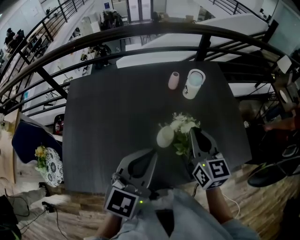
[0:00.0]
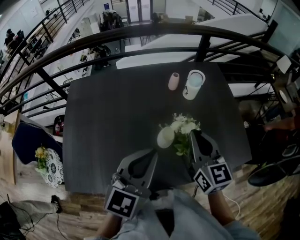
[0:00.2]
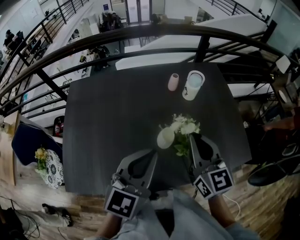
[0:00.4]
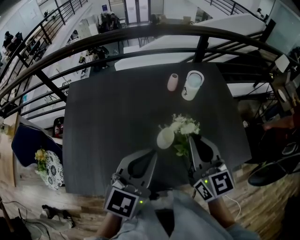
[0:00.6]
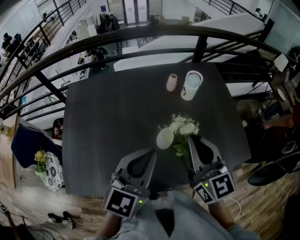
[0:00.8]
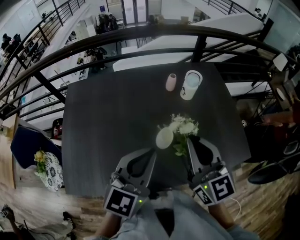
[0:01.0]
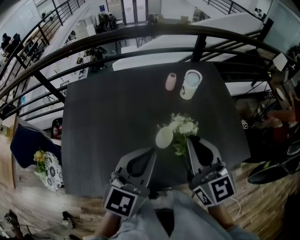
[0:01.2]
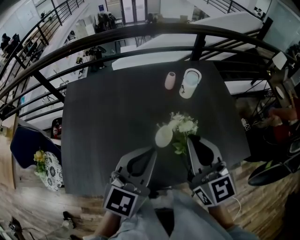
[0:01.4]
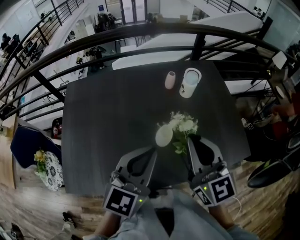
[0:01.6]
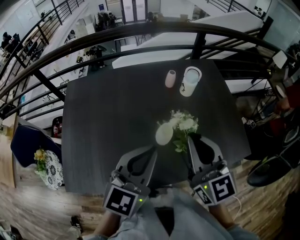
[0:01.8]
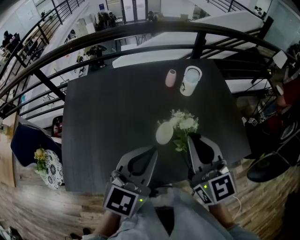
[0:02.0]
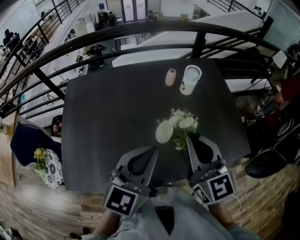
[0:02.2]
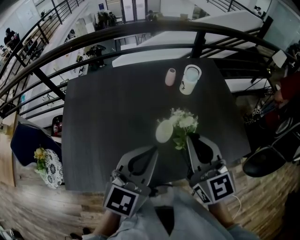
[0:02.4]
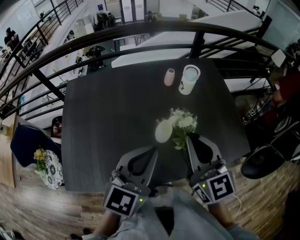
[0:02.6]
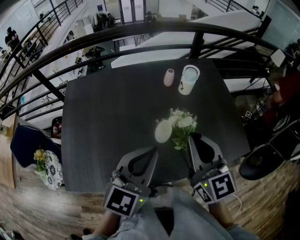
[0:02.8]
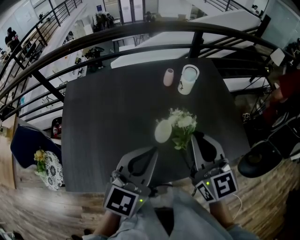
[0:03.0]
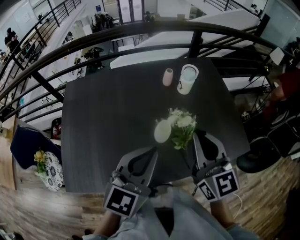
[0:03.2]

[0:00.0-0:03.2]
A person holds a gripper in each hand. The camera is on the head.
0:00.0 to 0:01.6: The right gripper travels upward and backward by about 10 cm.
0:01.6 to 0:03.2: The grippers move only a little.

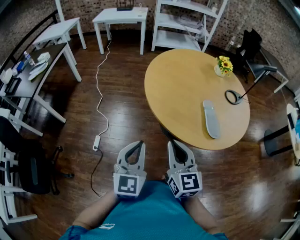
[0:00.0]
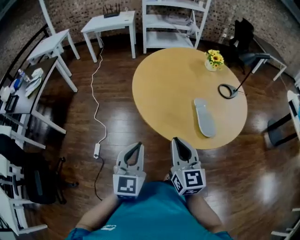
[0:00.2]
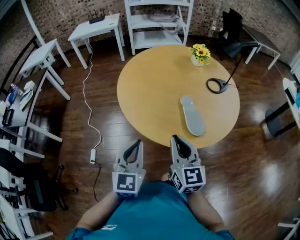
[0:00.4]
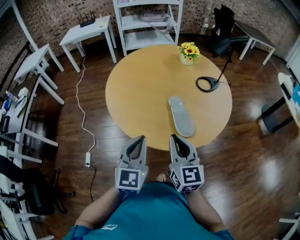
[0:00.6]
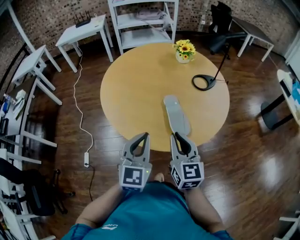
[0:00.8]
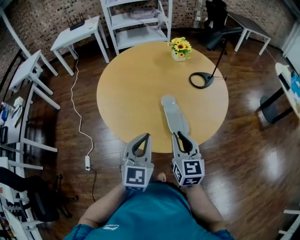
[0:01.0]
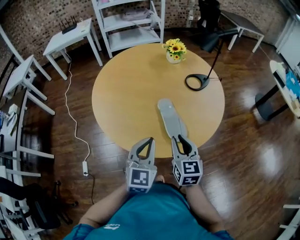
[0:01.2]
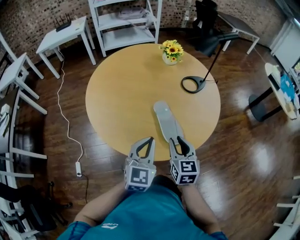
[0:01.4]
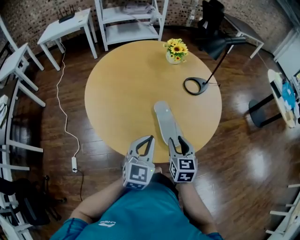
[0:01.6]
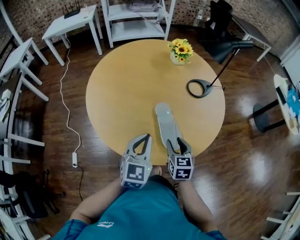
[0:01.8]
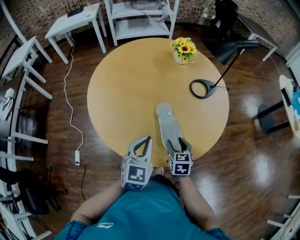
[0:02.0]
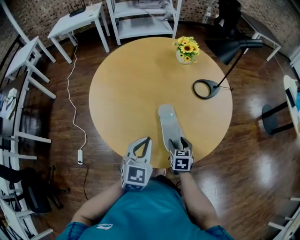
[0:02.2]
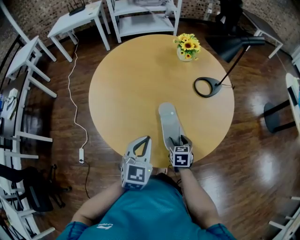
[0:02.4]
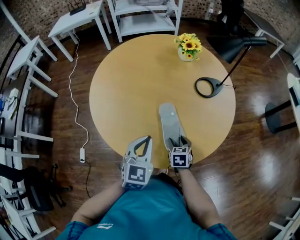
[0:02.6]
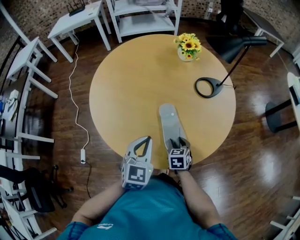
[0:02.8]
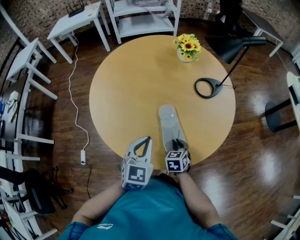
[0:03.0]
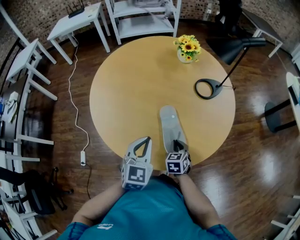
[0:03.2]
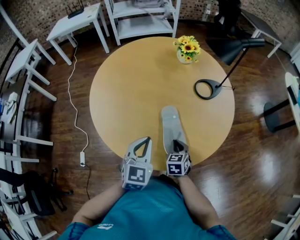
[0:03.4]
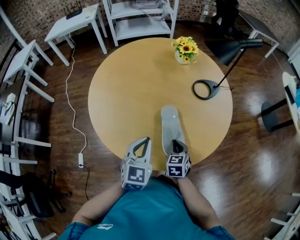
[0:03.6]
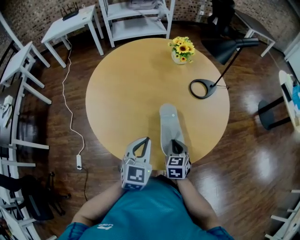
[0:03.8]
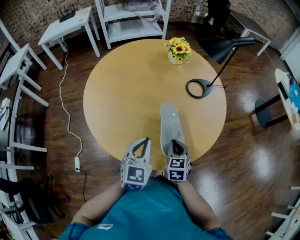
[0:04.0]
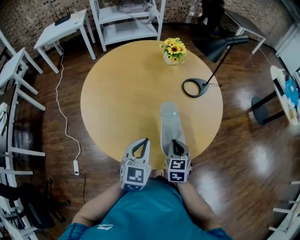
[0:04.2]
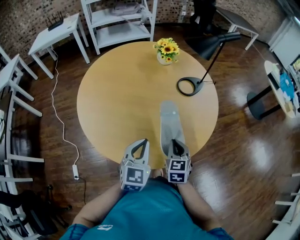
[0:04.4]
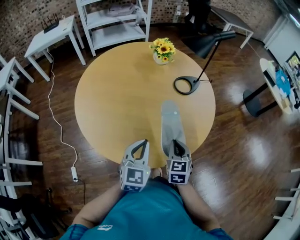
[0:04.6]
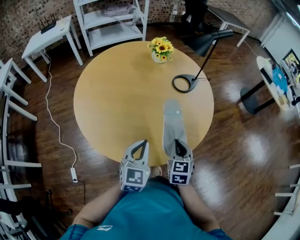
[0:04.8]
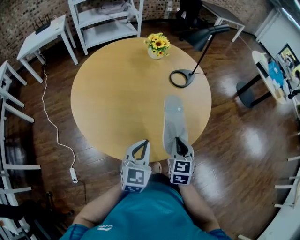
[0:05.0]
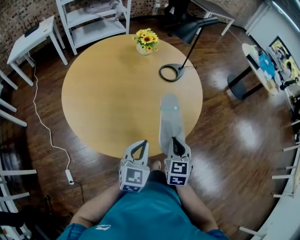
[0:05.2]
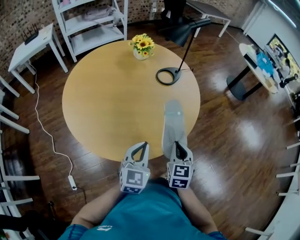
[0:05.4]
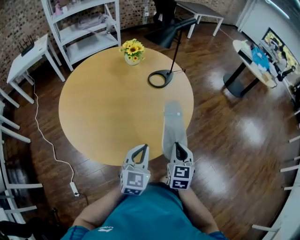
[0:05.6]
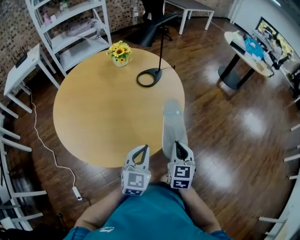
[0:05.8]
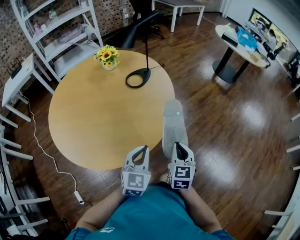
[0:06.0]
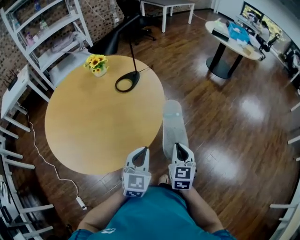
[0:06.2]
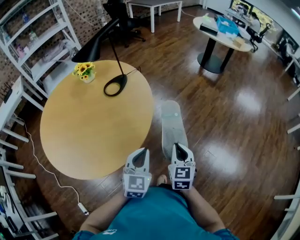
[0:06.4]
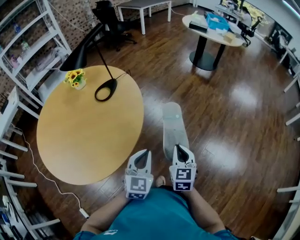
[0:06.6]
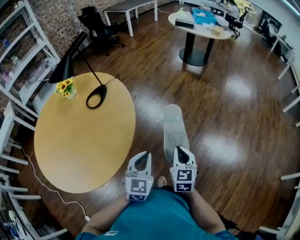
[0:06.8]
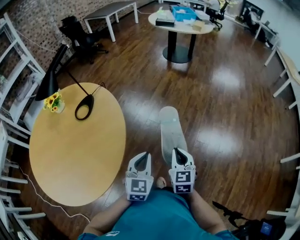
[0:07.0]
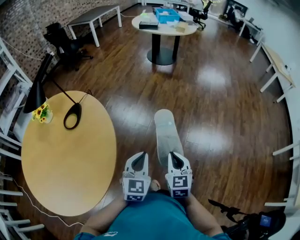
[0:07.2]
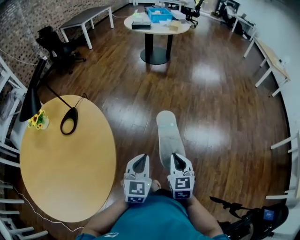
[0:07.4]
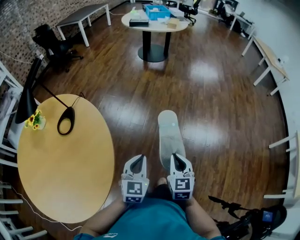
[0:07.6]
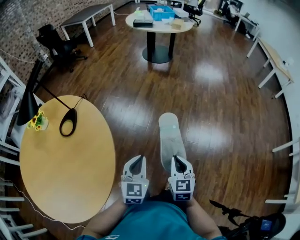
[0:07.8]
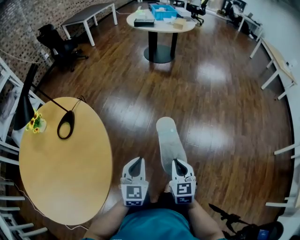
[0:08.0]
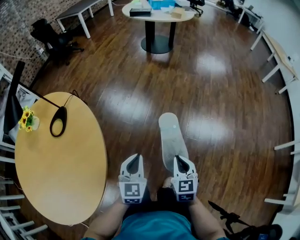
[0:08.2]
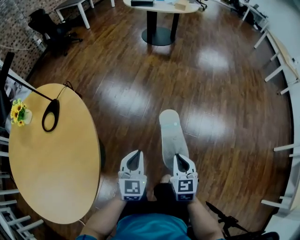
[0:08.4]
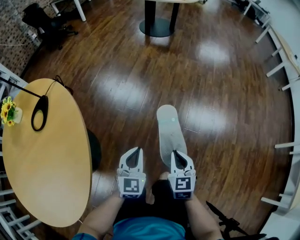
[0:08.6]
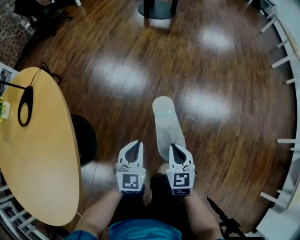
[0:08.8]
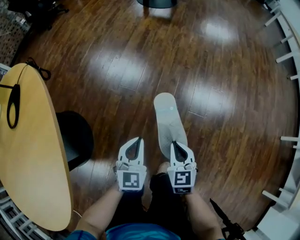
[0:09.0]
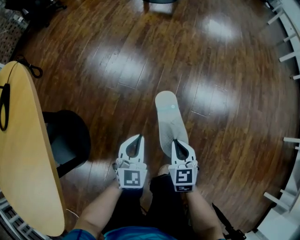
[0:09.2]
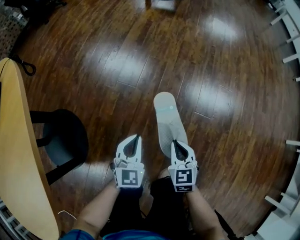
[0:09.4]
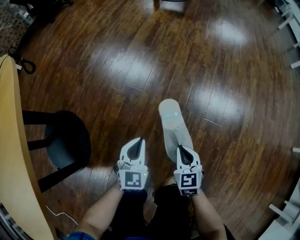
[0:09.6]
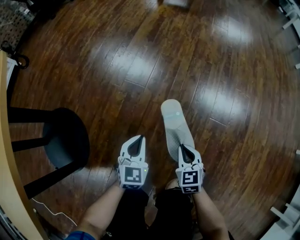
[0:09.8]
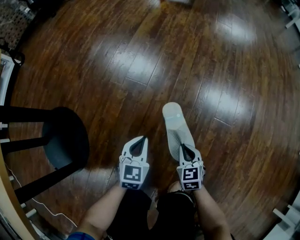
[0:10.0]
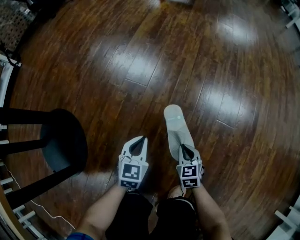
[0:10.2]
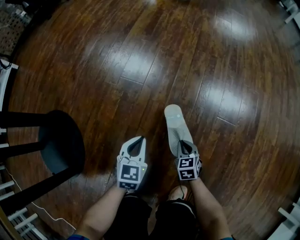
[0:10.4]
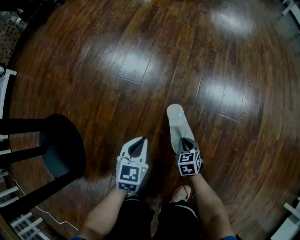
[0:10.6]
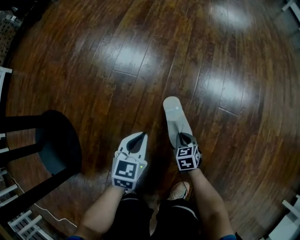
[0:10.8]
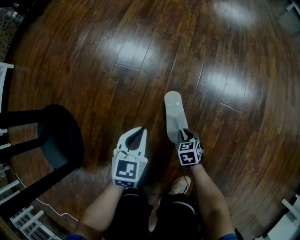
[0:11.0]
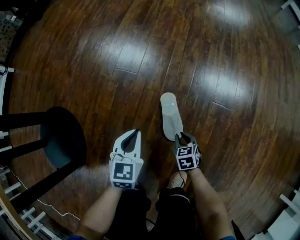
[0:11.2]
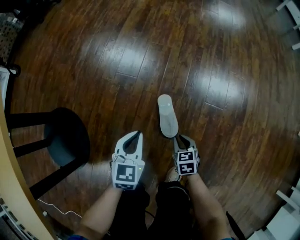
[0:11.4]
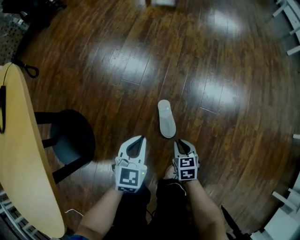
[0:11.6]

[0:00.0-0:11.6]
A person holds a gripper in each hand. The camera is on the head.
0:00.0 to 0:01.4: The pair of grippers is taken to the right and forward, roughly 40 cm. The right gripper changes its angle by approximately 30 degrees, and opens up; the left gripper changes its angle by about 20 degrees.
0:01.4 to 0:02.8: The right gripper goes approximately 20 cm downward and forward, and swivels roughly 30 degrees; the left gripper travels forward by some 10 cm.
0:02.8 to 0:04.4: The right gripper moves upward, roughly 10 cm, and closes up.
0:04.4 to 0:05.8: The left gripper is displaced to the right by approximately 15 cm. Meanwhile the right gripper shifts about 20 cm to the right and backward, and rotates about 20 degrees.
0:05.8 to 0:07.2: The right gripper ends up approximately 35 cm from where it was, and changes its angle by about 30 degrees; the left gripper shifts by approximately 35 cm, and changes its angle by approximately 30 degrees.
0:07.2 to 0:08.8: Both grippers move downward and forward, some 30 cm.
0:08.8 to 0:10.2: Both grippers travel together downward, roughly 50 cm.
0:10.2 to 0:11.6: Both grippers travel together upward, roughly 20 cm.

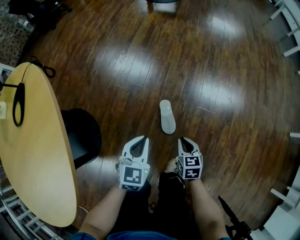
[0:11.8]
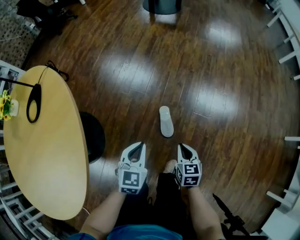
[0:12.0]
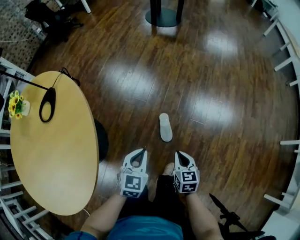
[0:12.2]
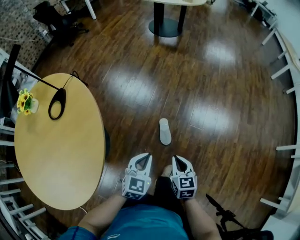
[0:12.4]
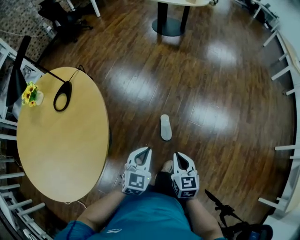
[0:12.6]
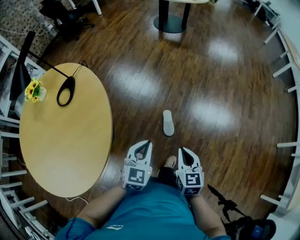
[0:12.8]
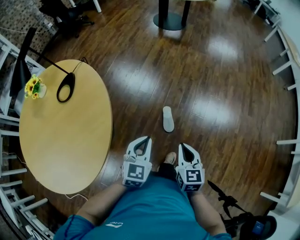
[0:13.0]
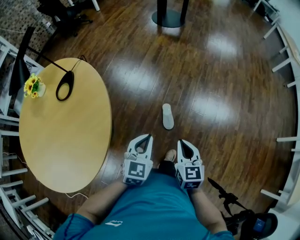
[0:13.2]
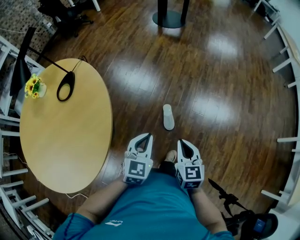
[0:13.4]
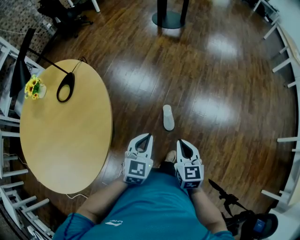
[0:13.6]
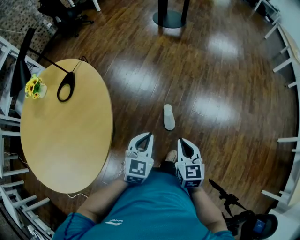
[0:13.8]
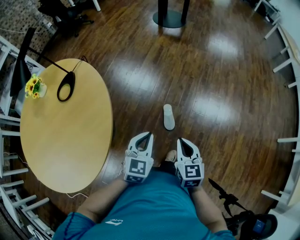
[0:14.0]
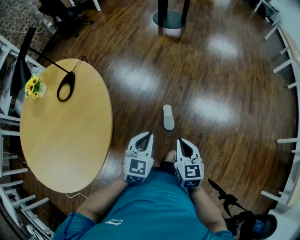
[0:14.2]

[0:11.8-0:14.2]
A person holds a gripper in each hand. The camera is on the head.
0:11.8 to 0:13.0: The right gripper moves upward, roughly 40 cm. The left gripper moves upward and backward, about 35 cm.
0:13.0 to 0:14.2: The grippers make only small movements.

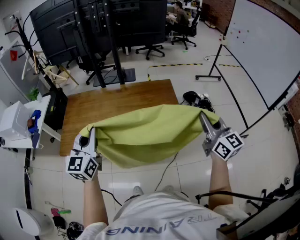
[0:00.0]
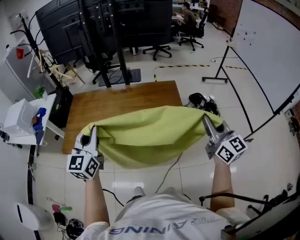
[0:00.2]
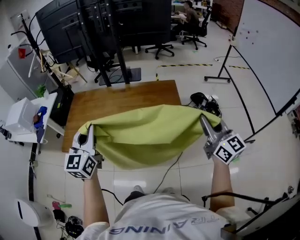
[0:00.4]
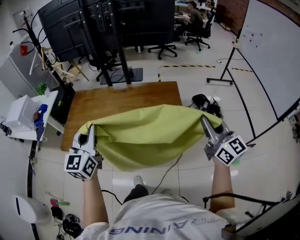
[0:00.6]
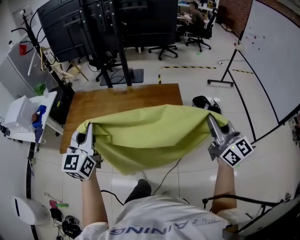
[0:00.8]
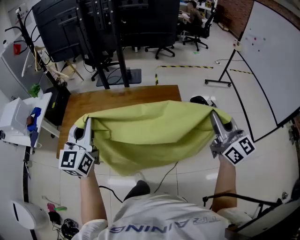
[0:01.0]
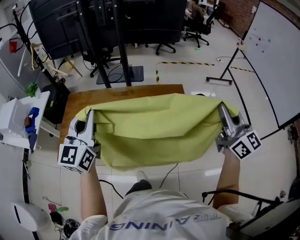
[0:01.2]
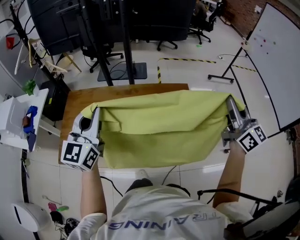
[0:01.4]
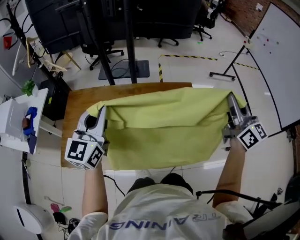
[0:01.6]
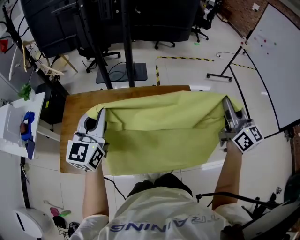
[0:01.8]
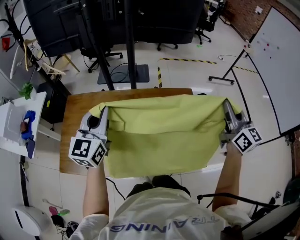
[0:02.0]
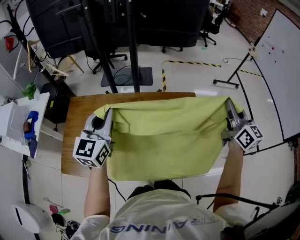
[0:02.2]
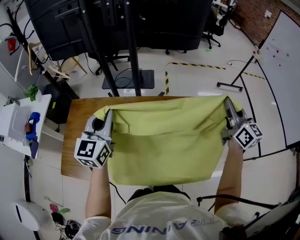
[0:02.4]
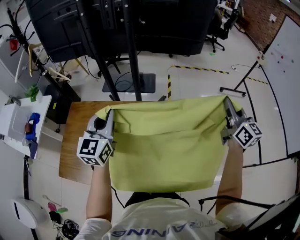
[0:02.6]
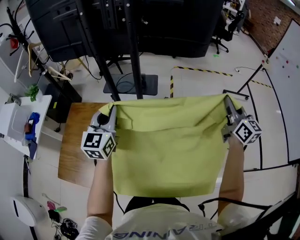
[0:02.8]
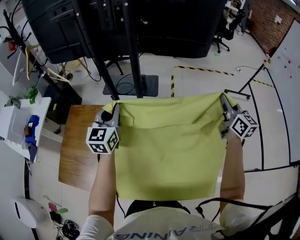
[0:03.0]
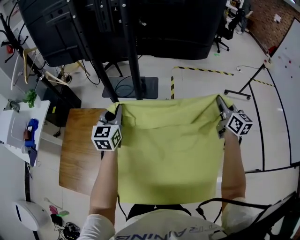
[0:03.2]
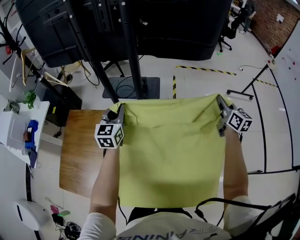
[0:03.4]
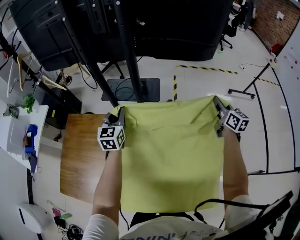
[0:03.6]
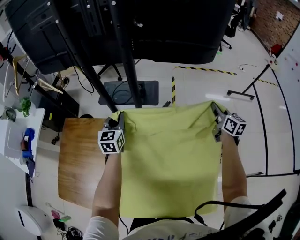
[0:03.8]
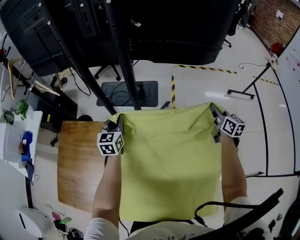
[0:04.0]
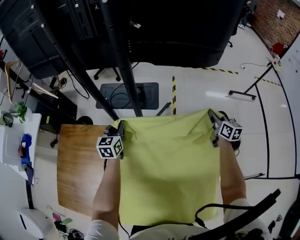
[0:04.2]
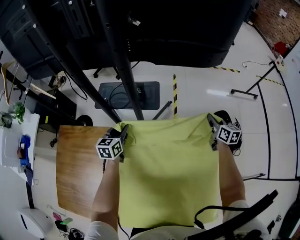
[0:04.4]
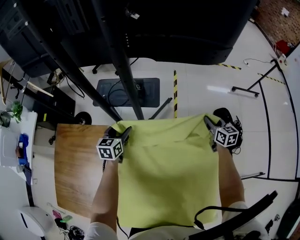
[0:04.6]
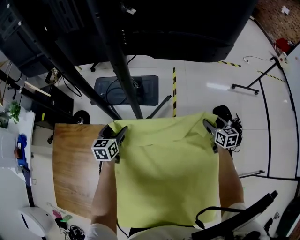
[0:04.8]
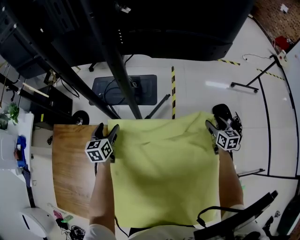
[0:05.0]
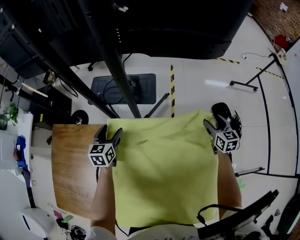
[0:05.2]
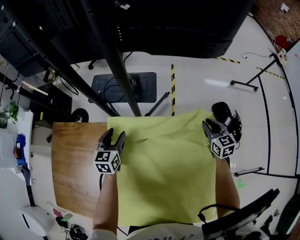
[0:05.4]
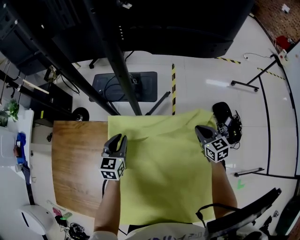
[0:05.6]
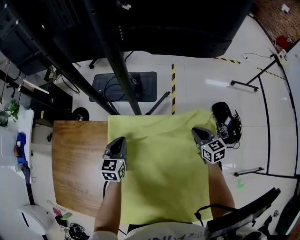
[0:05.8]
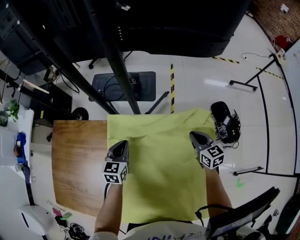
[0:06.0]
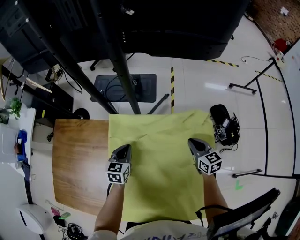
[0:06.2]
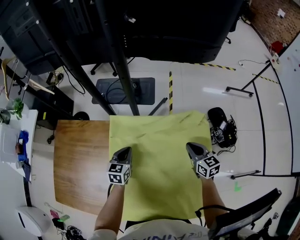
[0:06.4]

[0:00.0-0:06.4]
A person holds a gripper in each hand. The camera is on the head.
0:00.0 to 0:01.6: The grippers both shift forward by some 20 cm.
0:01.6 to 0:03.2: Both grippers travel together forward and downward, some 30 cm.
0:03.2 to 0:04.8: The two grippers go approximately 30 cm downward and forward. The left gripper swivels about 30 degrees, and opens. The right gripper turns by roughly 30 degrees, and opens up.
0:04.8 to 0:06.4: The right gripper goes roughly 20 cm backward and to the left, and closes up; the left gripper moves backward, approximately 15 cm, and closes its fingers.
